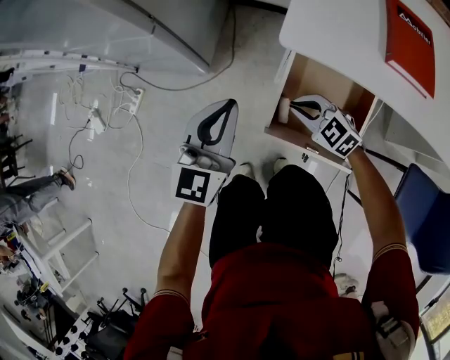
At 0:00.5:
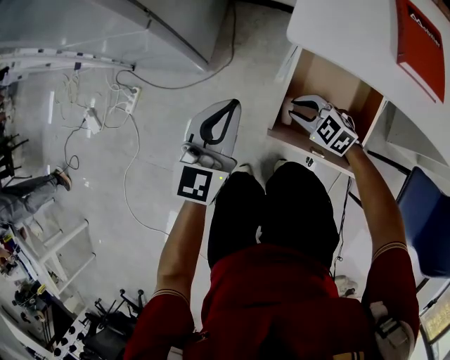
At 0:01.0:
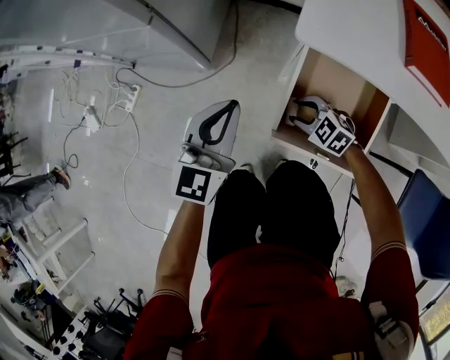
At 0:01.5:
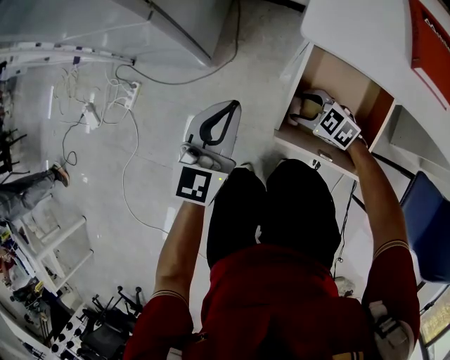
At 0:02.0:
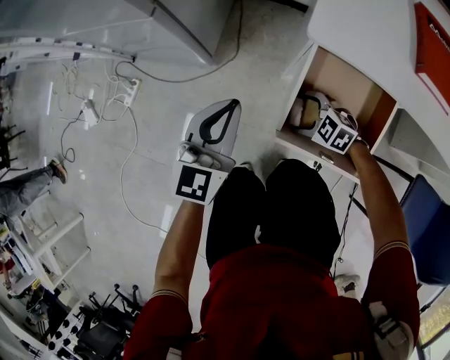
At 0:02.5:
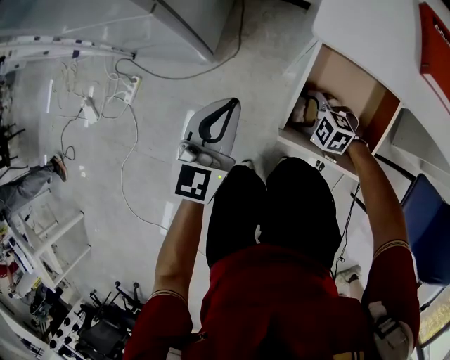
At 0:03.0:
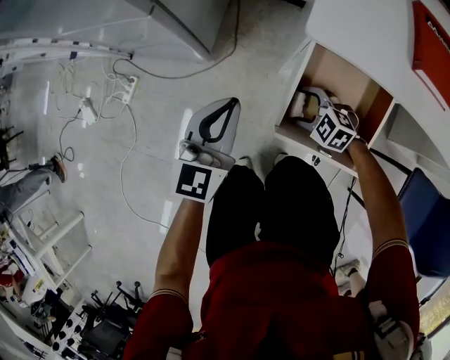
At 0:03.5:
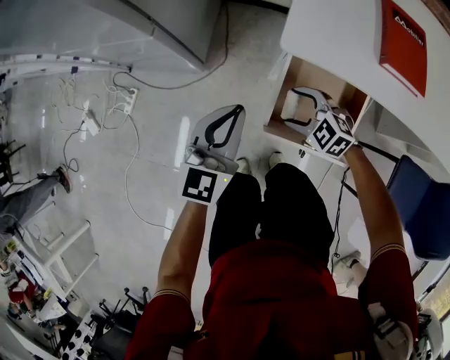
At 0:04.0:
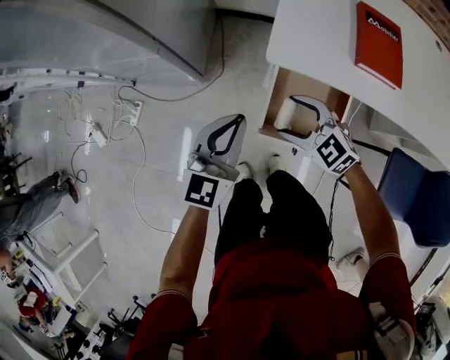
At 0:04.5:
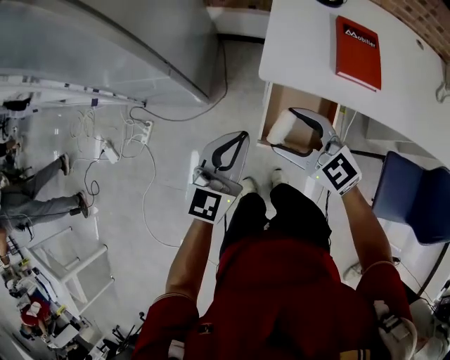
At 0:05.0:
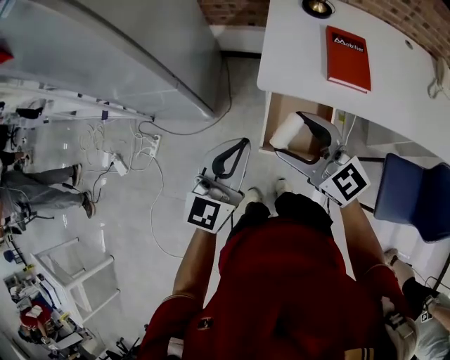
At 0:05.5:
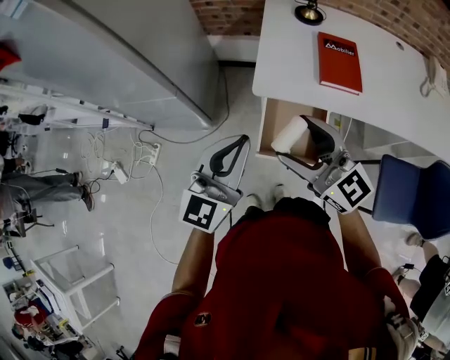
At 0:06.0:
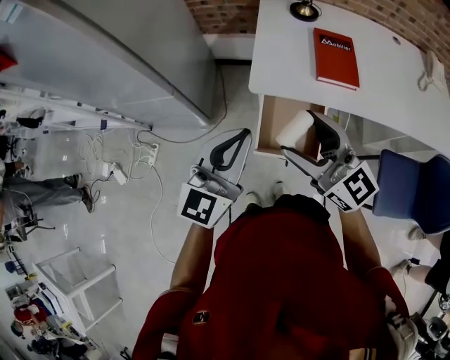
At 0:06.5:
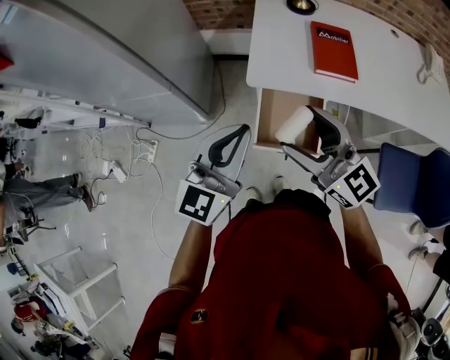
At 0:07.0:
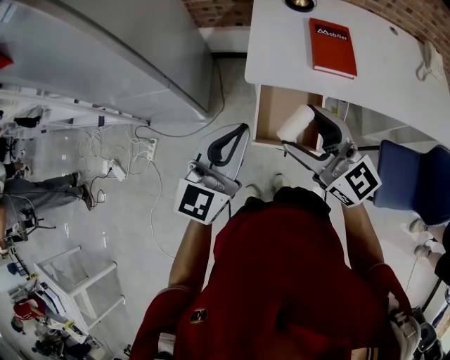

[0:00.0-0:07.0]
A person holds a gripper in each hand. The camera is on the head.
0:00.0 to 0:02.0: The left gripper goes about 5 cm downward. Meanwhile the right gripper goes about 10 cm downward, and opens its fingers.
0:02.0 to 0:03.5: The right gripper is displaced upward by some 15 cm. Meanwhile the left gripper moves upward, about 10 cm.
0:03.5 to 0:05.0: The right gripper shifts about 35 cm upward, and tips its fingers upward by roughly 40 degrees, while the left gripper moves upward, roughly 20 cm.
0:05.0 to 0:07.0: The left gripper shifts by roughly 5 cm. The right gripper shifts by roughly 5 cm.

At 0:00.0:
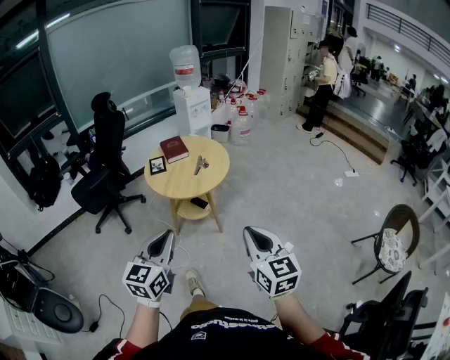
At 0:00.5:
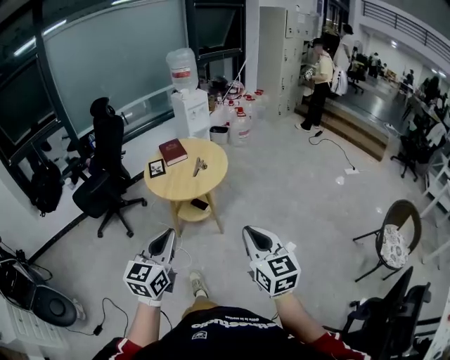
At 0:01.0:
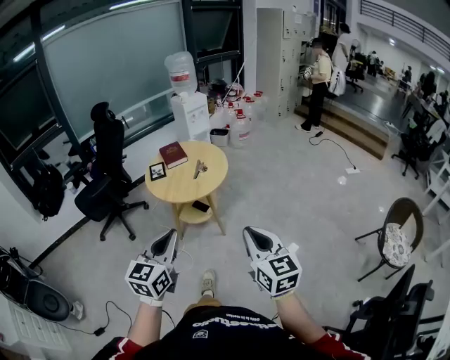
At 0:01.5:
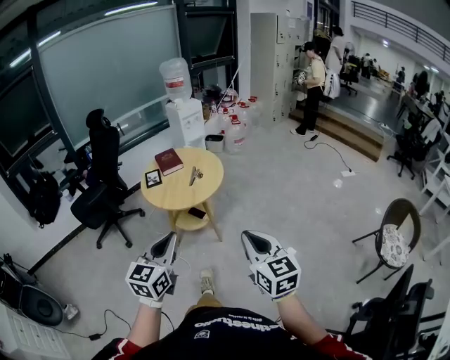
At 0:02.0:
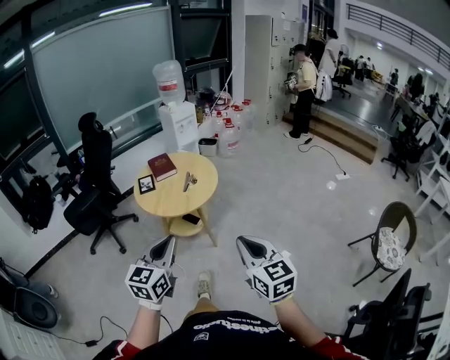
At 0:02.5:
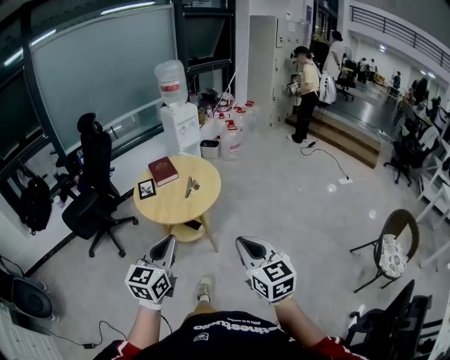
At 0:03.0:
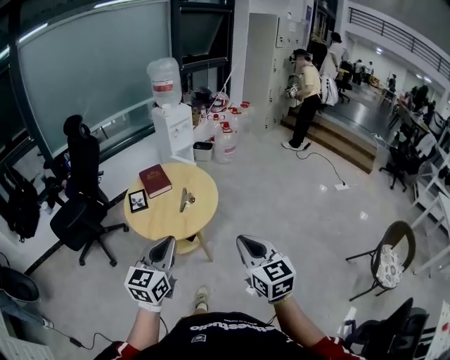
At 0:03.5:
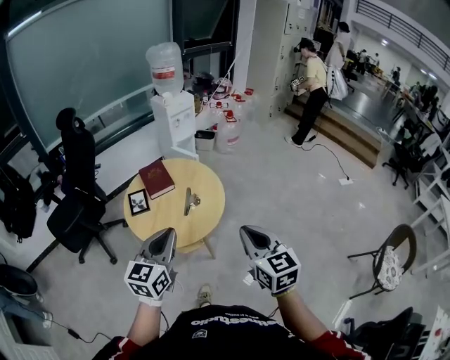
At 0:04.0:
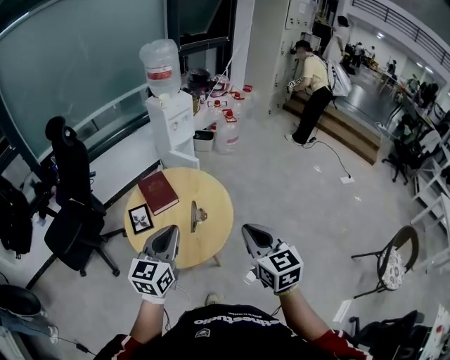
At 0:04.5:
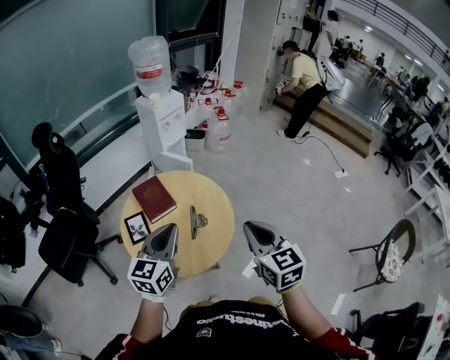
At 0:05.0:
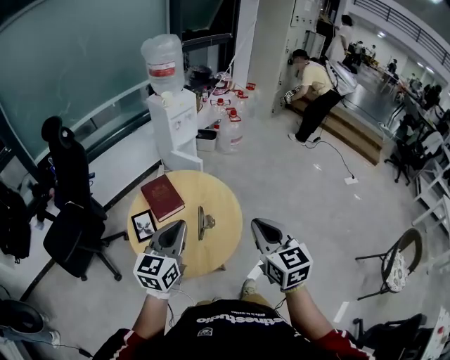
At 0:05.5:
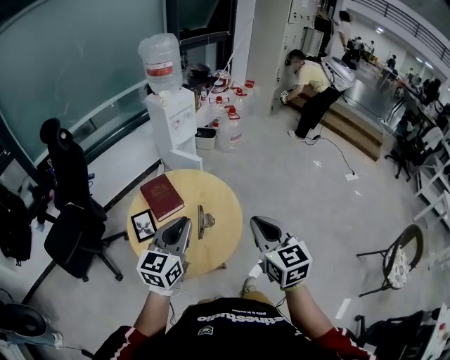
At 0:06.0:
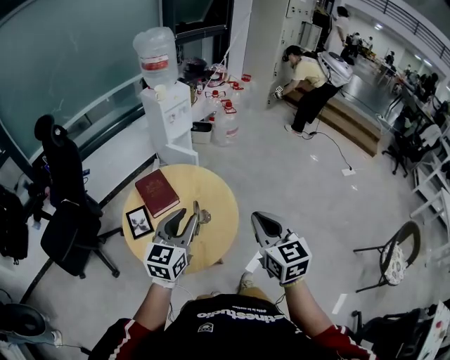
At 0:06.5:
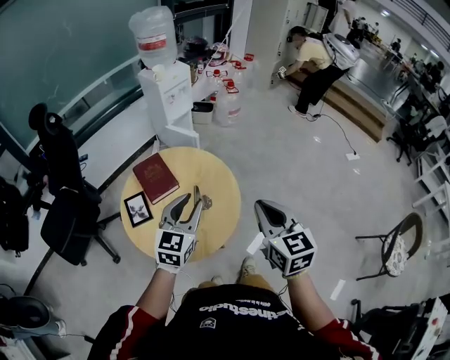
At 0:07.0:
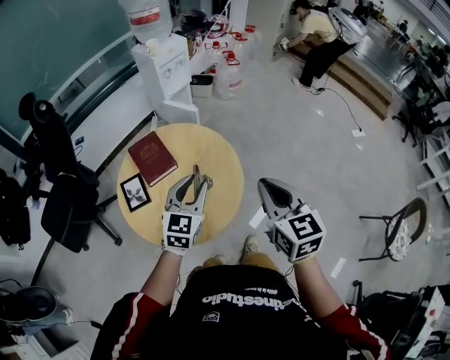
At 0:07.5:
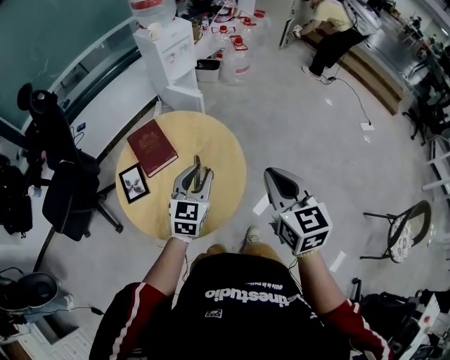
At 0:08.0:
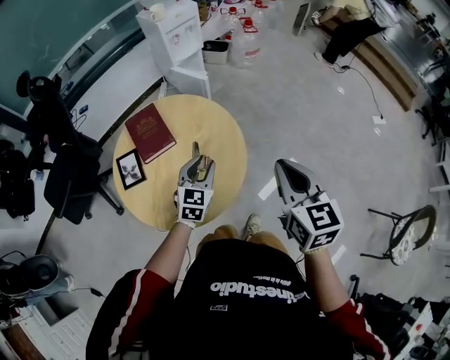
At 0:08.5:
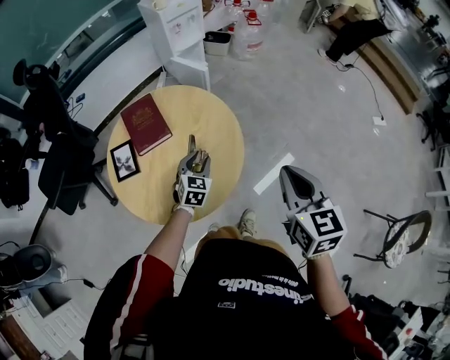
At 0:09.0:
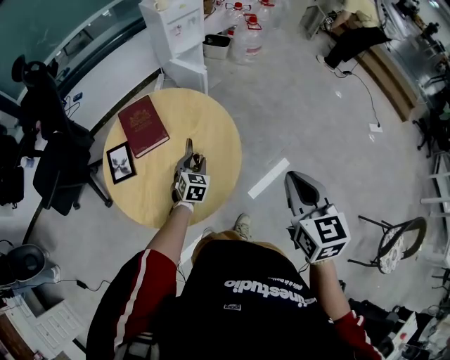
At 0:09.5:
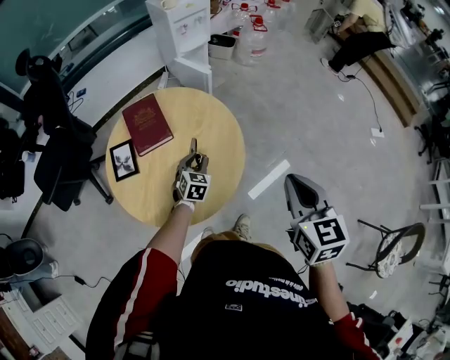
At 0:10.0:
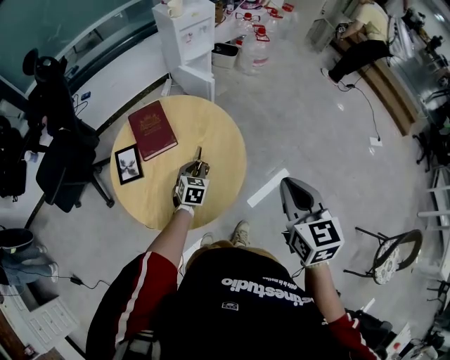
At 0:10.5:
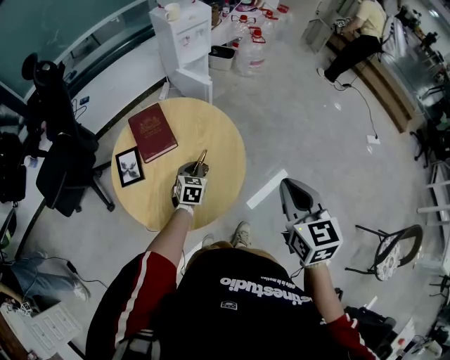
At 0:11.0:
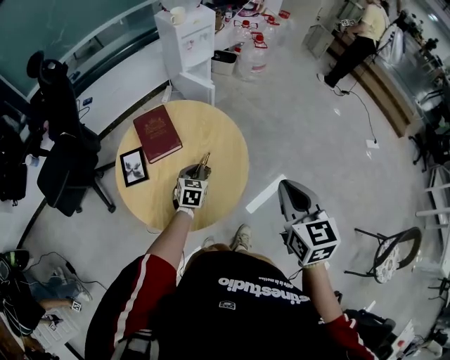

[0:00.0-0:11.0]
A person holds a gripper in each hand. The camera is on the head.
0:00.0 to 0:02.0: The left gripper goes some 5 cm forward.
0:02.0 to 0:03.5: The two grippers go about 30 cm forward.
0:03.5 to 0:05.5: Both grippers move forward, roughly 20 cm.
0:05.5 to 0:07.5: The right gripper goes roughly 10 cm forward and downward. Meanwhile the left gripper is displaced downward, forward and to the right by roughly 20 cm, and opens up.
0:07.5 to 0:09.0: The left gripper moves downward, roughly 25 cm, and swivels roughly 30 degrees; the right gripper is displaced to the right by about 10 cm.
0:09.0 to 0:11.0: The left gripper changes place by approximately 5 cm, and closes up. Meanwhile the right gripper travels to the left by about 5 cm.

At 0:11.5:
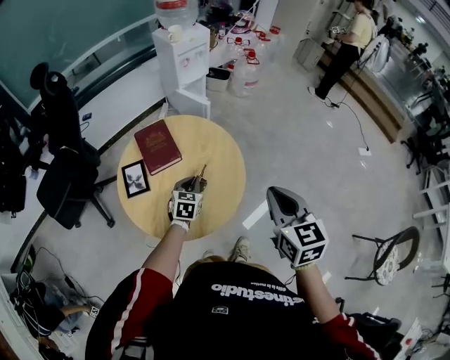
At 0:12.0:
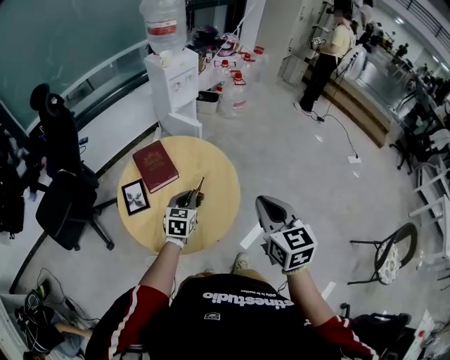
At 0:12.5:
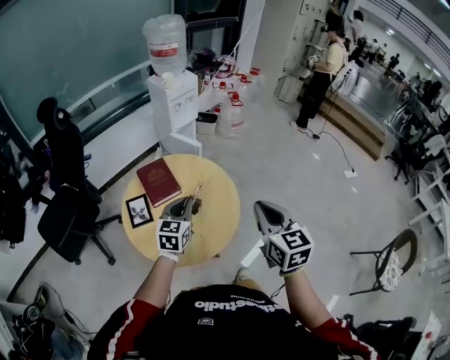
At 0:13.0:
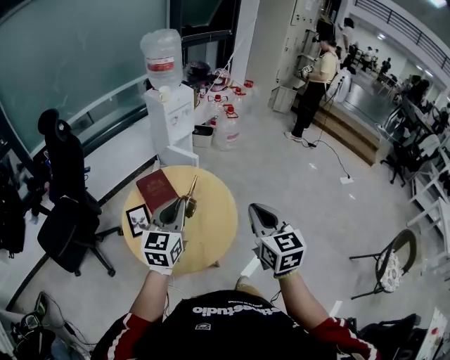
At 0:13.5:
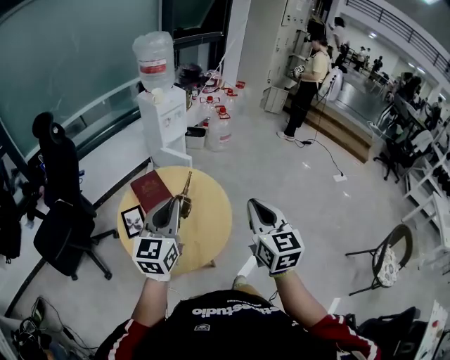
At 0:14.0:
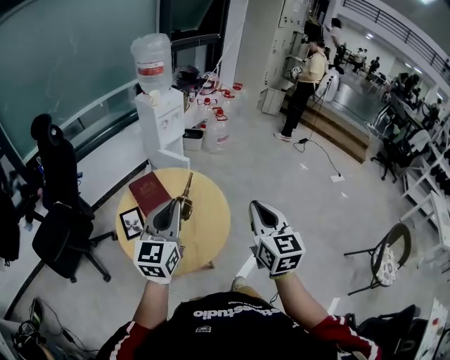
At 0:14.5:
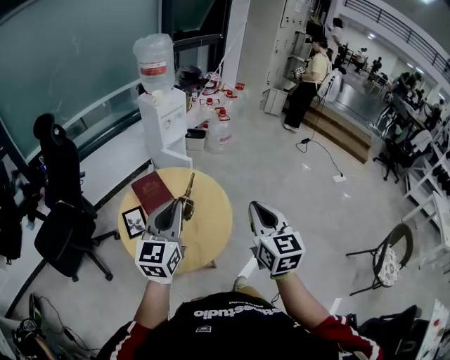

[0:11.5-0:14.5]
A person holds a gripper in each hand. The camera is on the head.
0:11.5 to 0:13.0: The right gripper goes approximately 5 cm upward, while the left gripper goes approximately 30 cm upward, and tilts its fingers about 30 degrees upward.
0:13.0 to 0:14.5: The left gripper moves some 5 cm.

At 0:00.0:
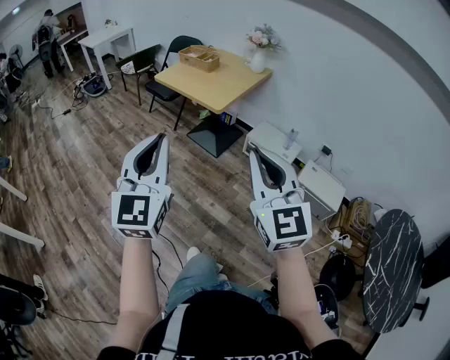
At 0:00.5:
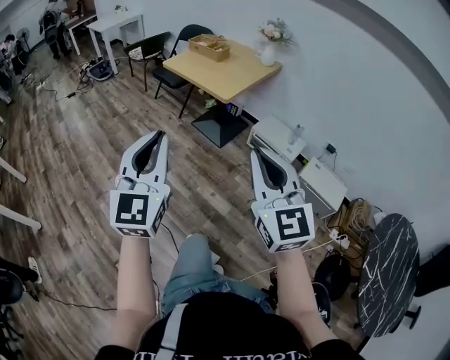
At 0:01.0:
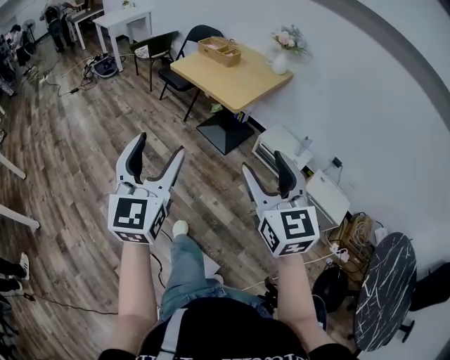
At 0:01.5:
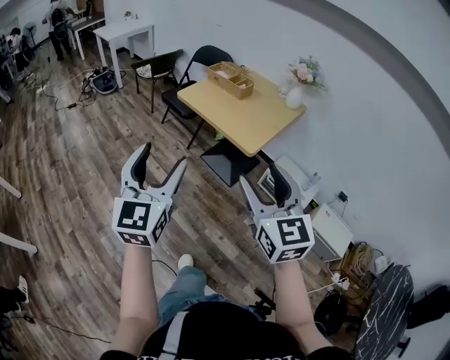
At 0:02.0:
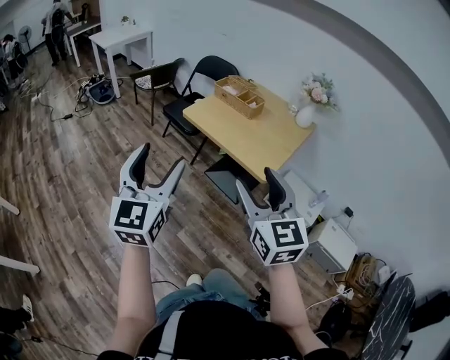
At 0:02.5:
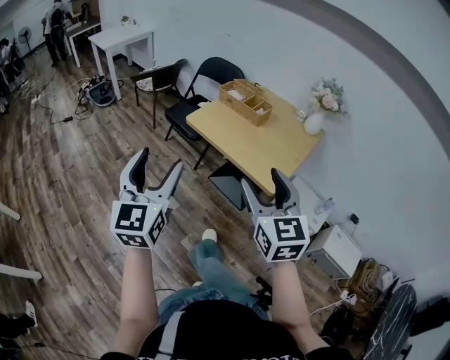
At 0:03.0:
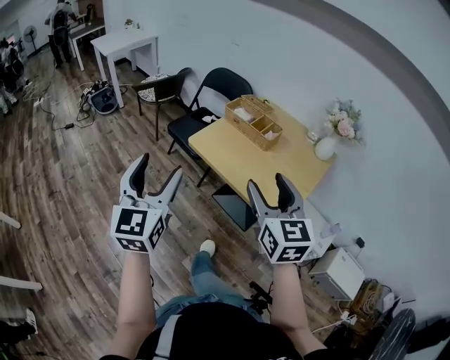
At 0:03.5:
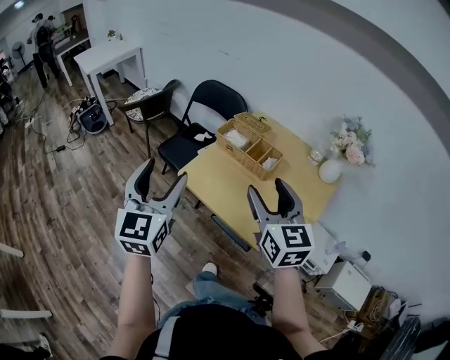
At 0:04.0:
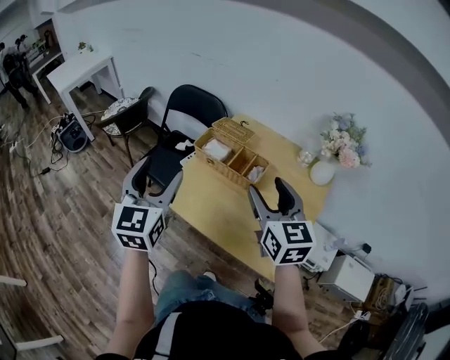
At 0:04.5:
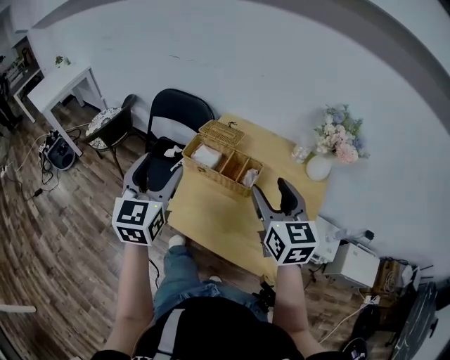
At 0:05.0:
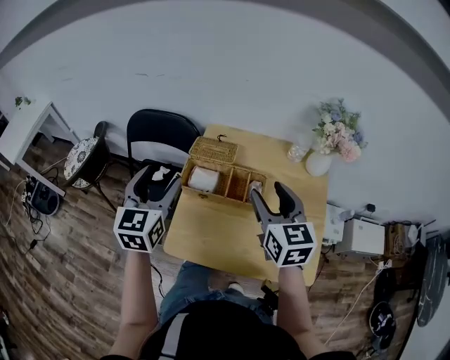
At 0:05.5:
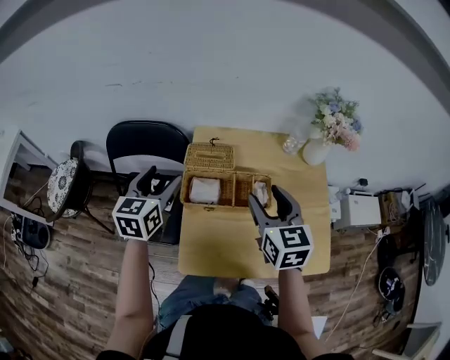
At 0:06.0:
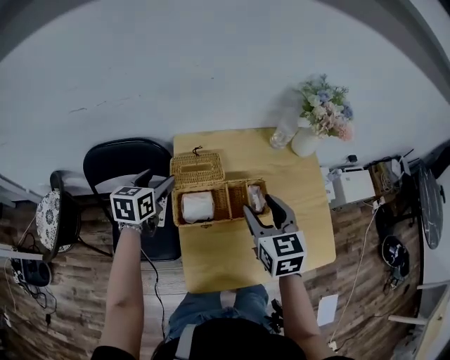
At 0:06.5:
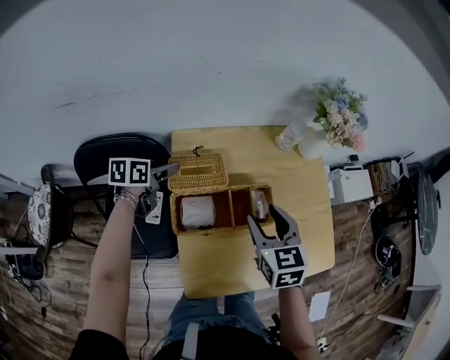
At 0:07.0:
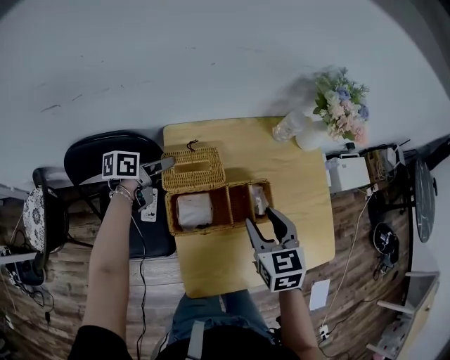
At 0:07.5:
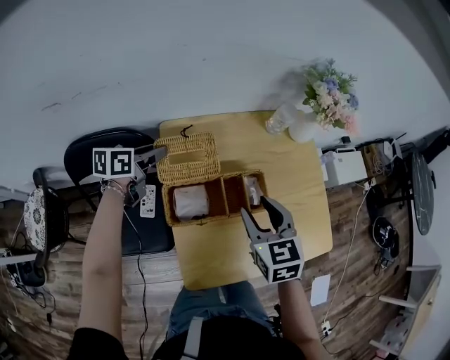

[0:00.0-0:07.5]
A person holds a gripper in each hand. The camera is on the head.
0:00.0 to 0:02.0: Both grippers are carried forward and to the left, about 40 cm. The right gripper opens. The left gripper opens up.
0:02.0 to 0:04.0: The two grippers travel together, forward, some 50 cm.
0:04.0 to 0:05.5: The right gripper shifts by roughly 20 cm, and rotates some 30 degrees, while the left gripper moves some 35 cm, and turns by about 40 degrees.
0:05.5 to 0:07.5: The left gripper moves approximately 20 cm, rotates about 40 degrees, and closes its fingers; the right gripper heads downward, covering about 5 cm.
